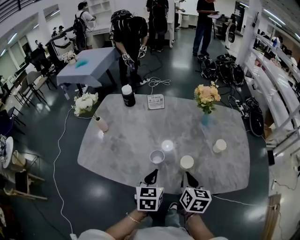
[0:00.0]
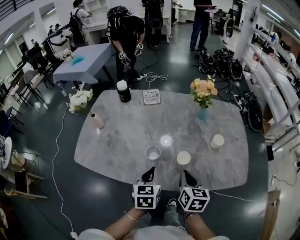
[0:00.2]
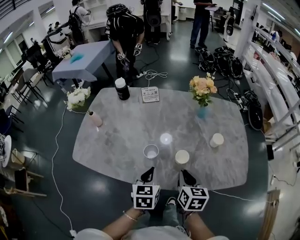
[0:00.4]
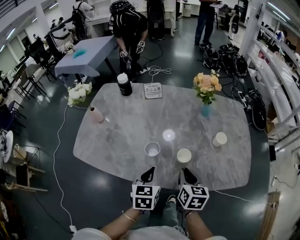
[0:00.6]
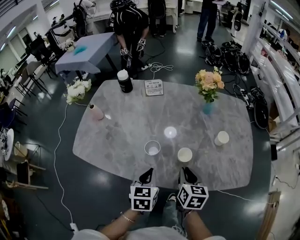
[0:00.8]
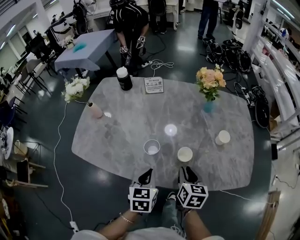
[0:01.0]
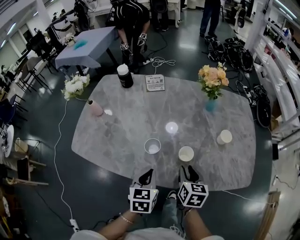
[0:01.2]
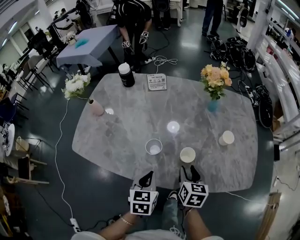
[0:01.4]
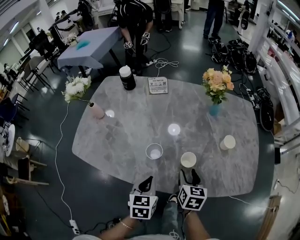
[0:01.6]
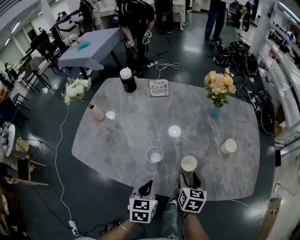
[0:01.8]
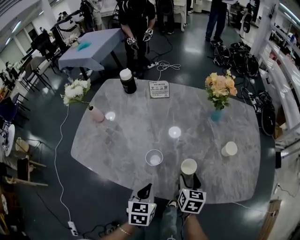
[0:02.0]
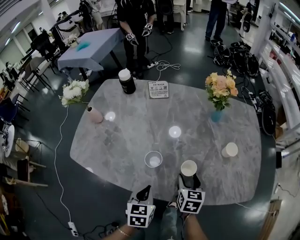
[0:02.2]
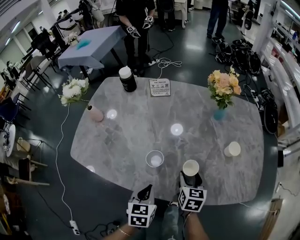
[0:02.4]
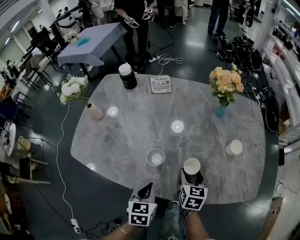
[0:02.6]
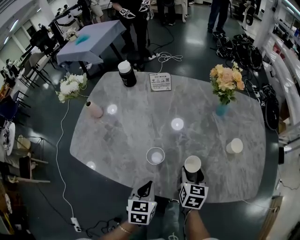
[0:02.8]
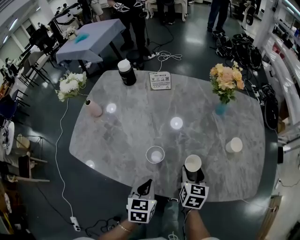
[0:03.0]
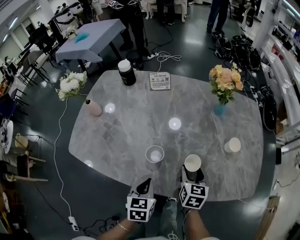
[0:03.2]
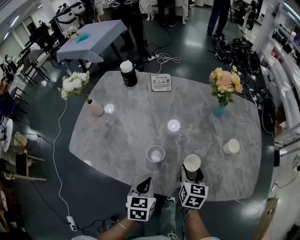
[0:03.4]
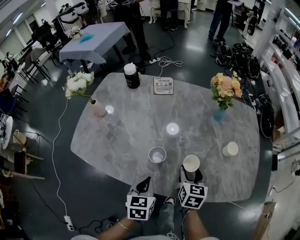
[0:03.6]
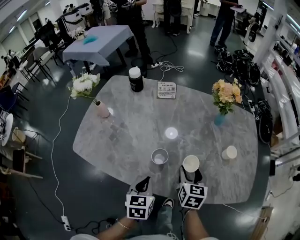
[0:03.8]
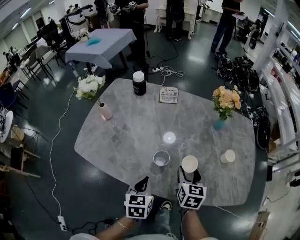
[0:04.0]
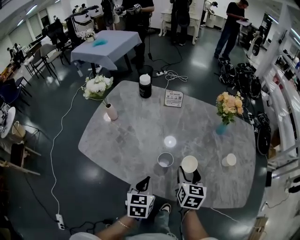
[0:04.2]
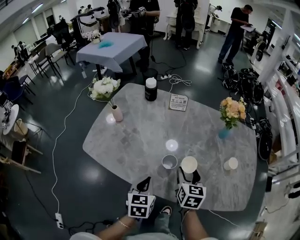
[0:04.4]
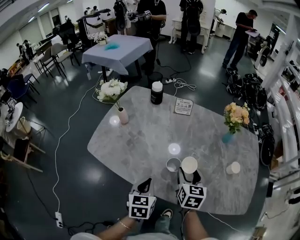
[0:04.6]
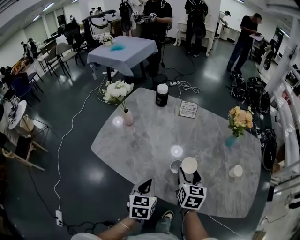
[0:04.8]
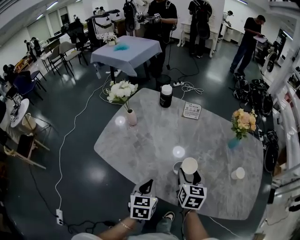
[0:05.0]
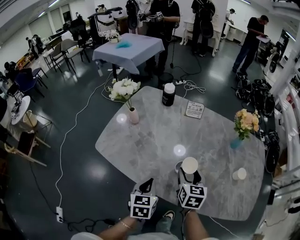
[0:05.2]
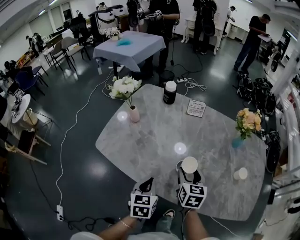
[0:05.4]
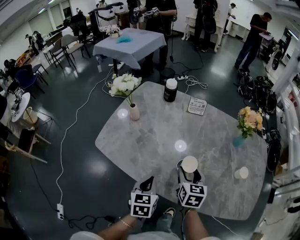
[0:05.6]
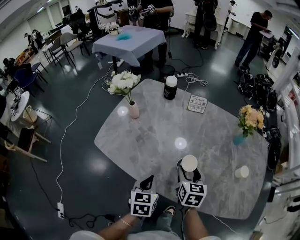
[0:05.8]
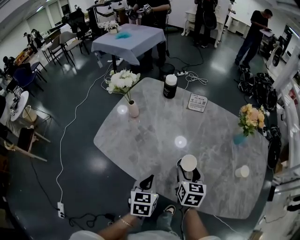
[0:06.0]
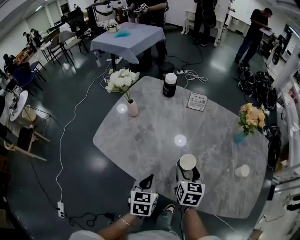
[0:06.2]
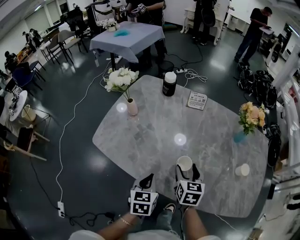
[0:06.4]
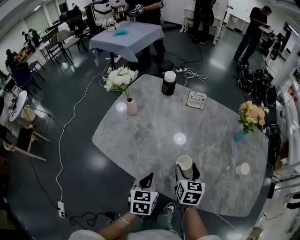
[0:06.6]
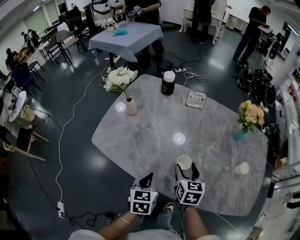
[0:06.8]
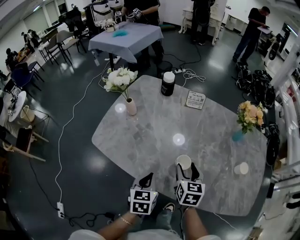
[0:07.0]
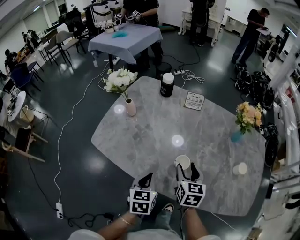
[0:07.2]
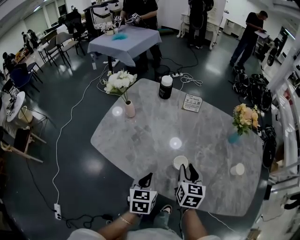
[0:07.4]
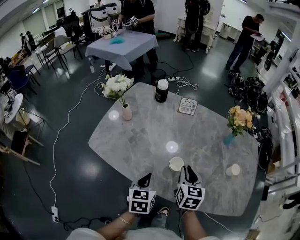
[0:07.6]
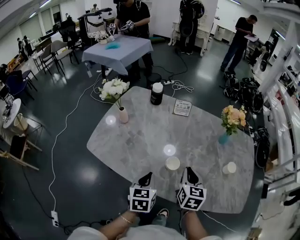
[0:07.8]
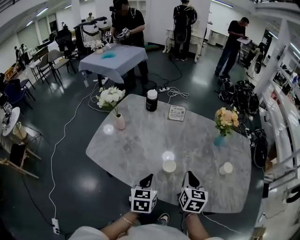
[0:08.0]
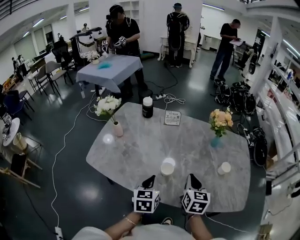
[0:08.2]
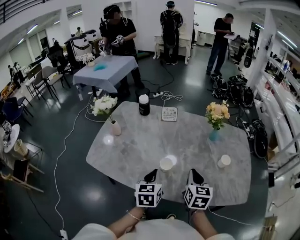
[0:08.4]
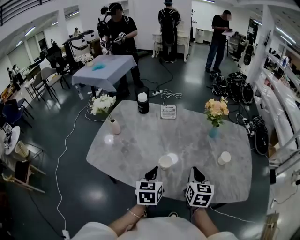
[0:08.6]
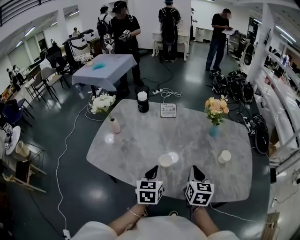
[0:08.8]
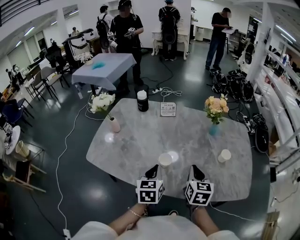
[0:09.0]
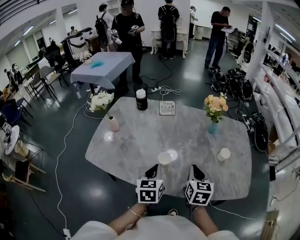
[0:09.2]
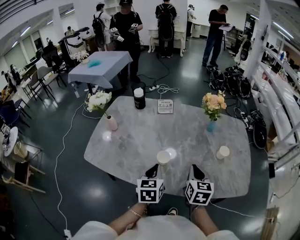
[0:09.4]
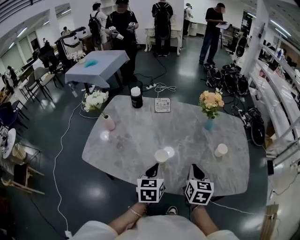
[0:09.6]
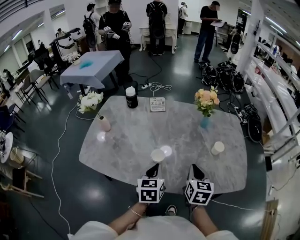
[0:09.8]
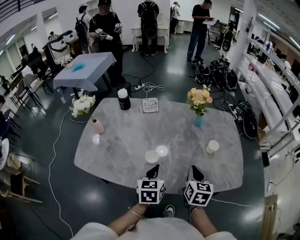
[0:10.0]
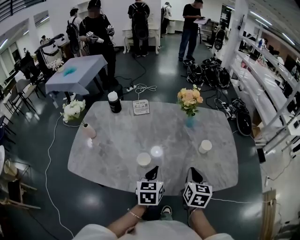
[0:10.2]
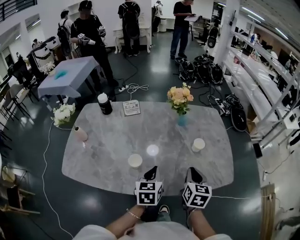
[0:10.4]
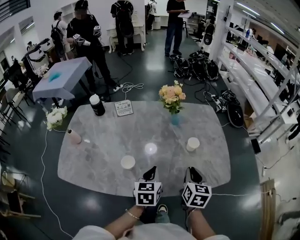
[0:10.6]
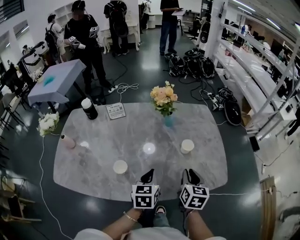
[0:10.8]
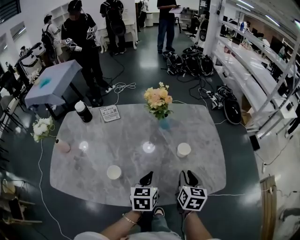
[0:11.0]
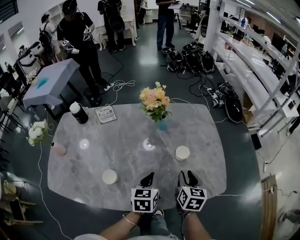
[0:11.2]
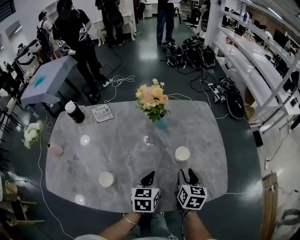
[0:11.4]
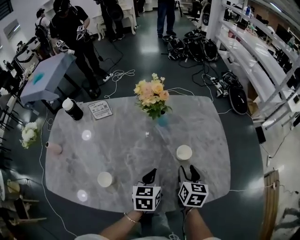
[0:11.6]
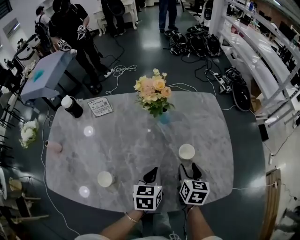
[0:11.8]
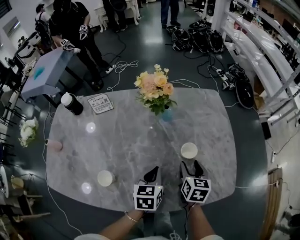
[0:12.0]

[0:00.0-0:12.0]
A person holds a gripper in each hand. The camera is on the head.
0:00.0 to 0:01.6: The grippers both shift downward by some 10 cm. The right gripper opens up.
0:01.6 to 0:03.0: The right gripper moves some 5 cm.
0:03.0 to 0:04.4: The left gripper goes approximately 10 cm to the left and upward, while the right gripper heads upward and to the left, covering some 15 cm.
0:04.4 to 0:06.0: The left gripper ends up some 5 cm from where it was, while the right gripper shifts approximately 5 cm to the left.
0:06.0 to 0:07.6: The right gripper changes place by about 5 cm, and closes its fingers.
0:07.6 to 0:09.0: The right gripper moves to the right, some 10 cm. Meanwhile the left gripper goes approximately 10 cm to the right and upward.
0:09.0 to 0:10.4: The grippers both shift to the right by approximately 15 cm.
0:10.4 to 0:12.0: The two grippers go roughly 20 cm forward, downward and to the right. The right gripper opens up.

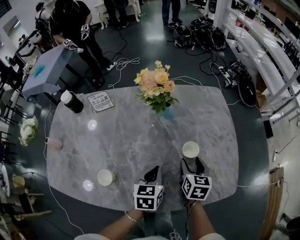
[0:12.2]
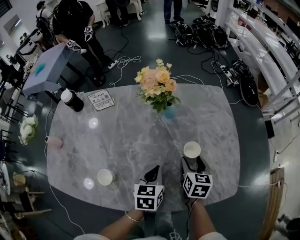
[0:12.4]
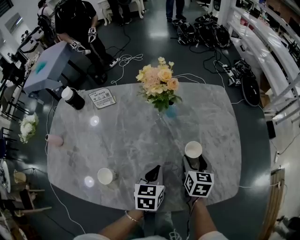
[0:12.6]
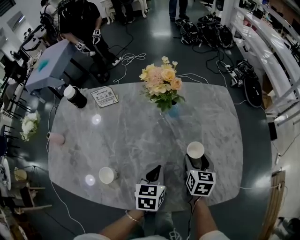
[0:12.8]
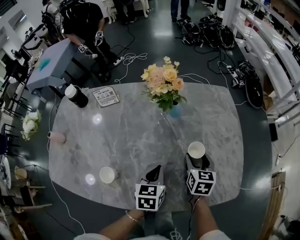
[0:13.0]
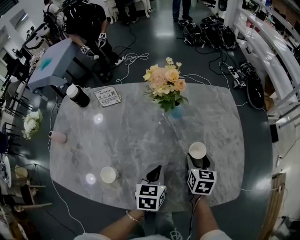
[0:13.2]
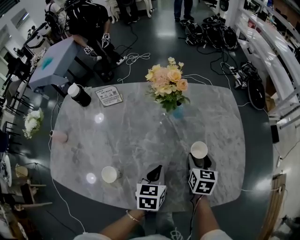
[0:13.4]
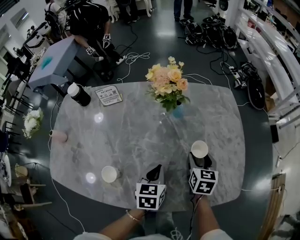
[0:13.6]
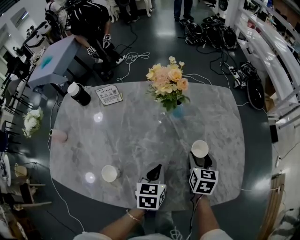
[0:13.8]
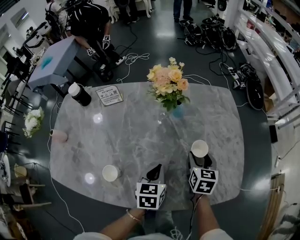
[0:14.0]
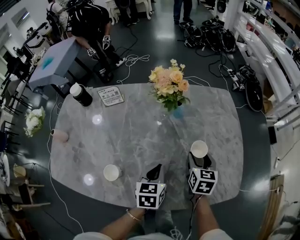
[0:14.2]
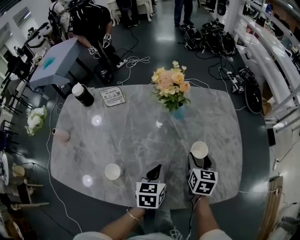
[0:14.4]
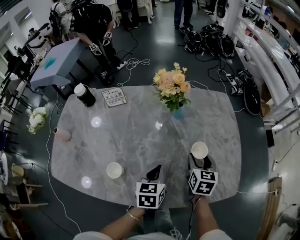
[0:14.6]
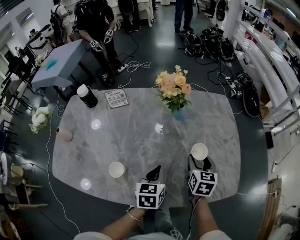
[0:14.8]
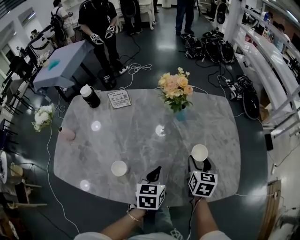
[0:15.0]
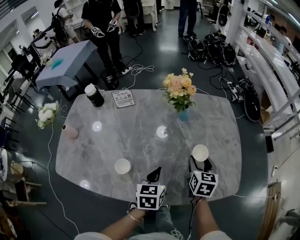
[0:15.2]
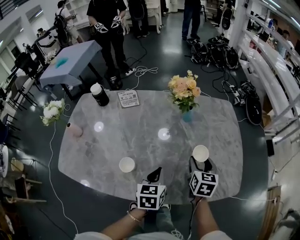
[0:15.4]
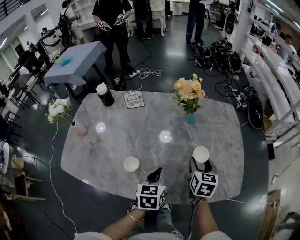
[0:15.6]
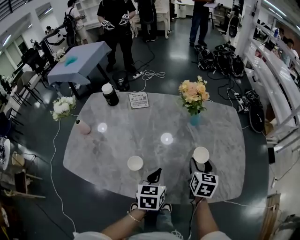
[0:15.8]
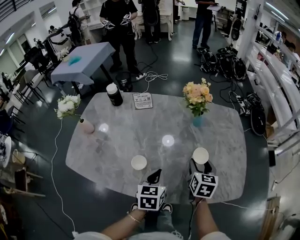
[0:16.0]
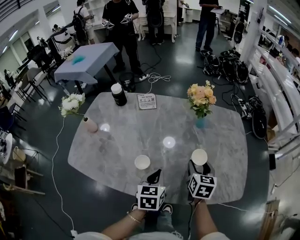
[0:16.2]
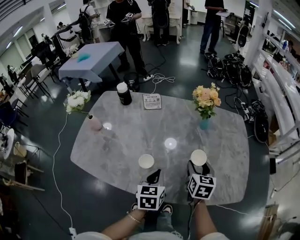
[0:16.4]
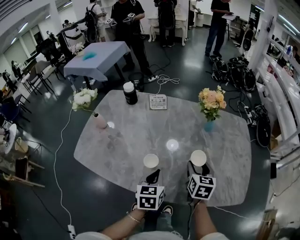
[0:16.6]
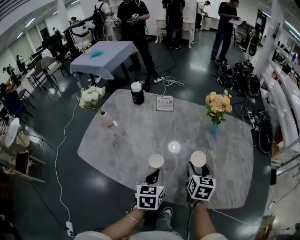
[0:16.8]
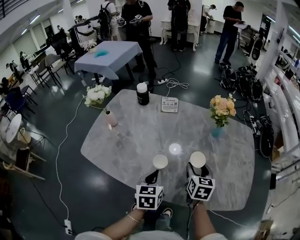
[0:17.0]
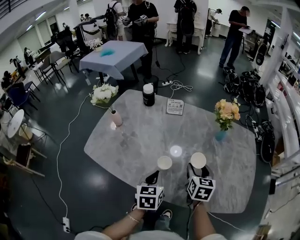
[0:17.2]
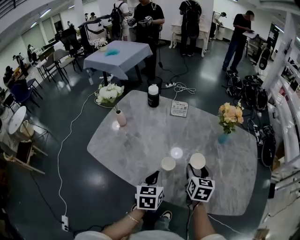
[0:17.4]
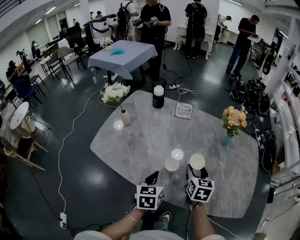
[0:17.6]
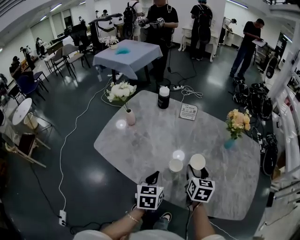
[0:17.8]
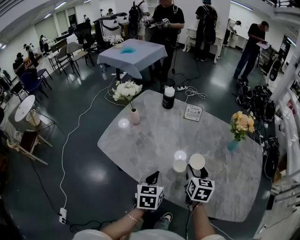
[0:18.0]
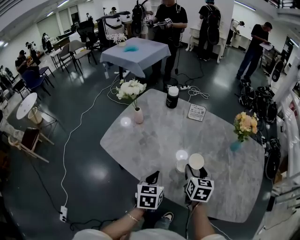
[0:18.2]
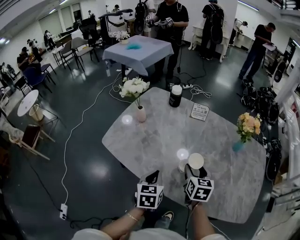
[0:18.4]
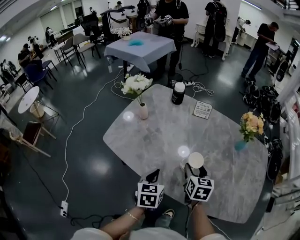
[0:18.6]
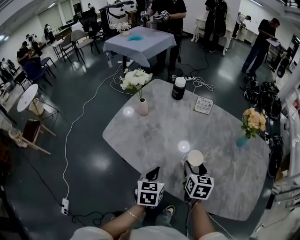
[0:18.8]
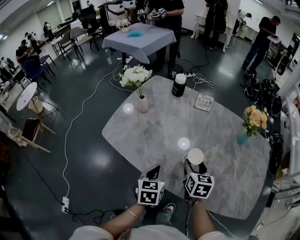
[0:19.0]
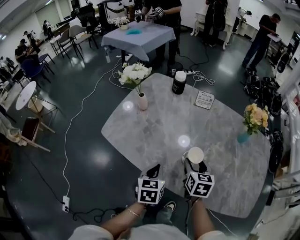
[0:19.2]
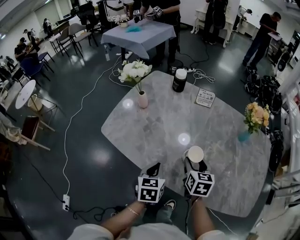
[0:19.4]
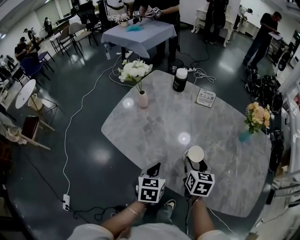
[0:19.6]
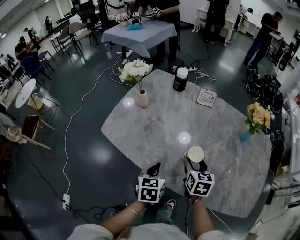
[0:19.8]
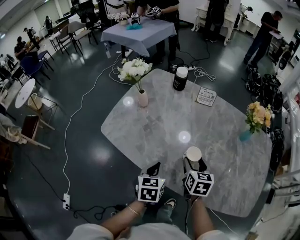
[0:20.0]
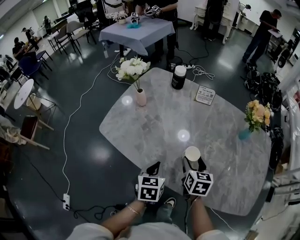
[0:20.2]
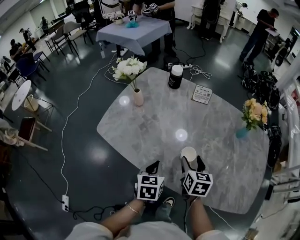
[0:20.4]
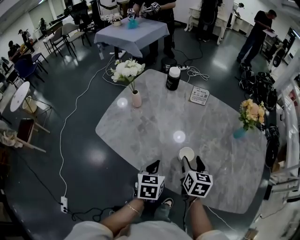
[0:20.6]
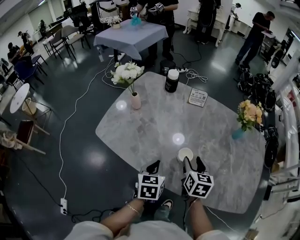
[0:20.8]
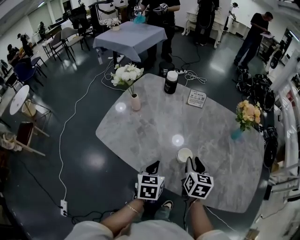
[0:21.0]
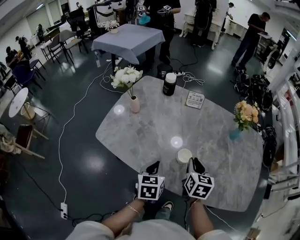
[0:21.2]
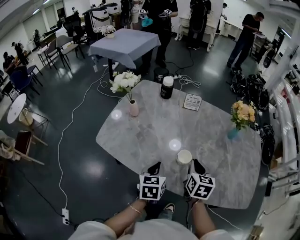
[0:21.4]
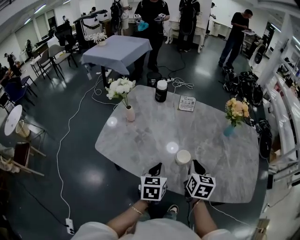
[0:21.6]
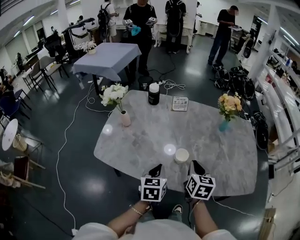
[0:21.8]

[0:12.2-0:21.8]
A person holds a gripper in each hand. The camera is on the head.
0:12.2 to 0:13.8: The grippers move only a little.
0:13.8 to 0:15.4: The right gripper moves upward and backward, some 10 cm; the left gripper is displaced backward and upward by some 10 cm.
0:15.4 to 0:17.0: The right gripper shifts some 15 cm to the left, while the left gripper moves to the left and backward, approximately 15 cm.
0:17.0 to 0:18.6: Both grippers move to the left, some 15 cm.
0:18.6 to 0:20.2: The grippers make only small movements.
0:20.2 to 0:21.8: The right gripper moves upward and backward, approximately 10 cm, and closes, while the left gripper is displaced upward by roughly 5 cm.

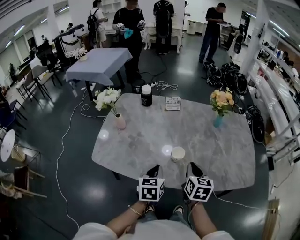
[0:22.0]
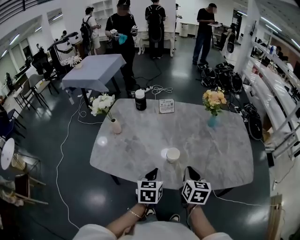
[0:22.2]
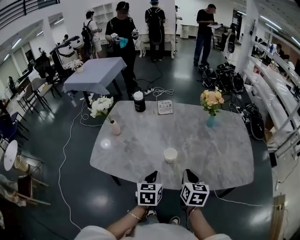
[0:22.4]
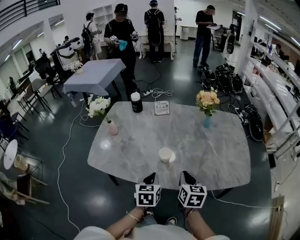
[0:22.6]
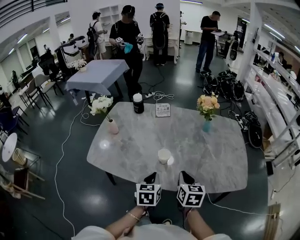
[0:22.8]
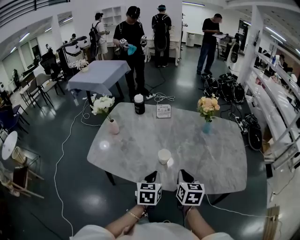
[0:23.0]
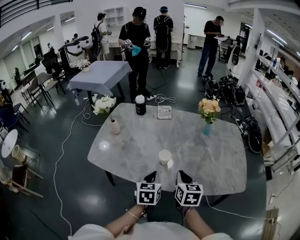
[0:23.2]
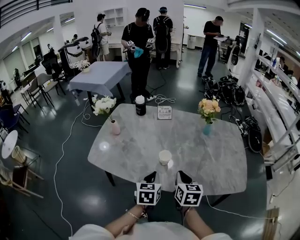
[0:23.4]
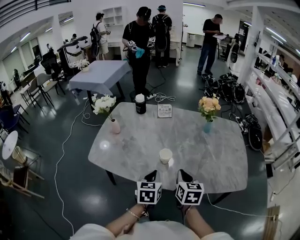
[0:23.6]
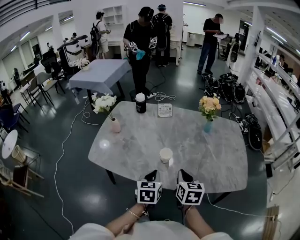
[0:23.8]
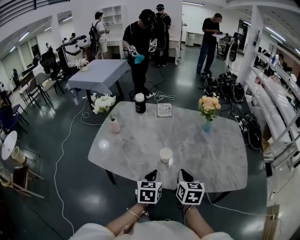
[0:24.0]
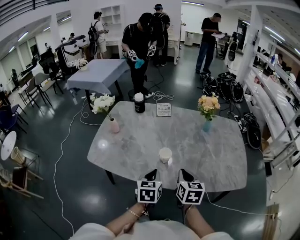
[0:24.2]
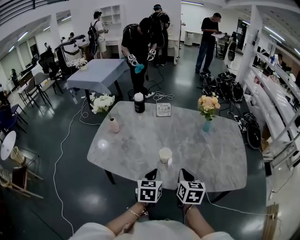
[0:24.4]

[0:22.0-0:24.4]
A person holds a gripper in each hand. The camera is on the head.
0:22.0 to 0:23.2: The left gripper travels to the right by approximately 5 cm, while the right gripper moves approximately 5 cm.
0:23.2 to 0:24.4: The two grippers keep their place.
